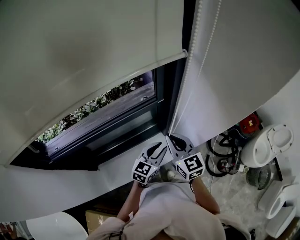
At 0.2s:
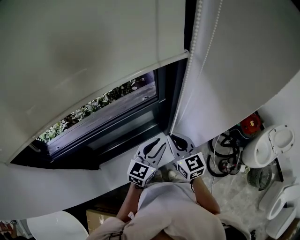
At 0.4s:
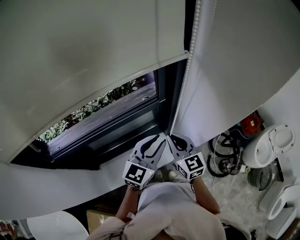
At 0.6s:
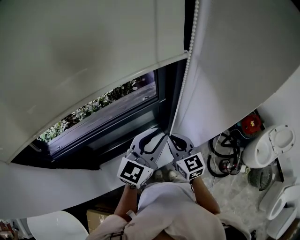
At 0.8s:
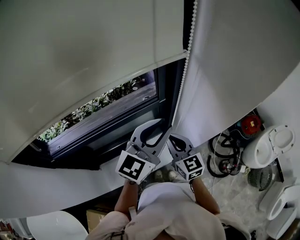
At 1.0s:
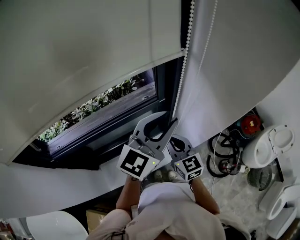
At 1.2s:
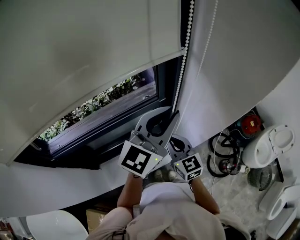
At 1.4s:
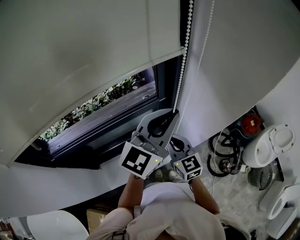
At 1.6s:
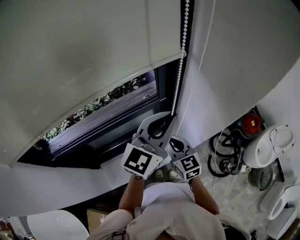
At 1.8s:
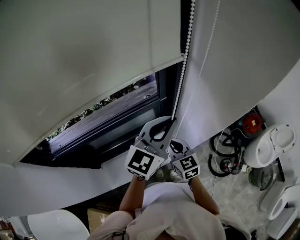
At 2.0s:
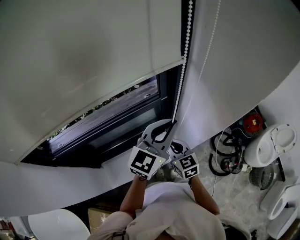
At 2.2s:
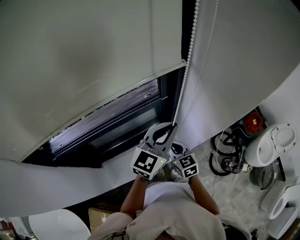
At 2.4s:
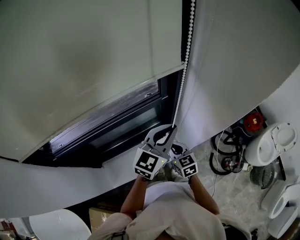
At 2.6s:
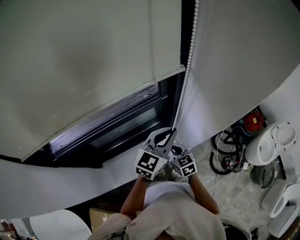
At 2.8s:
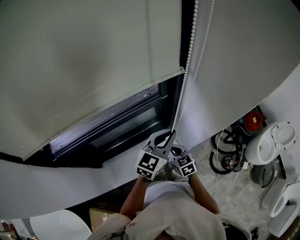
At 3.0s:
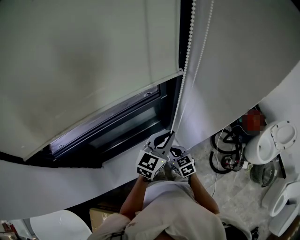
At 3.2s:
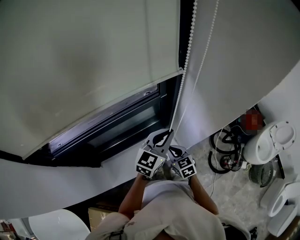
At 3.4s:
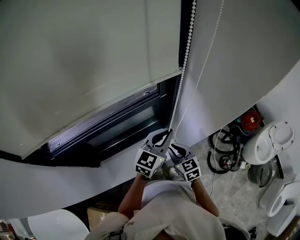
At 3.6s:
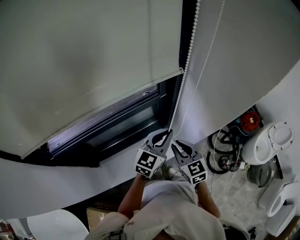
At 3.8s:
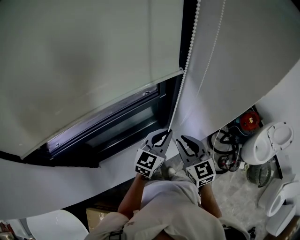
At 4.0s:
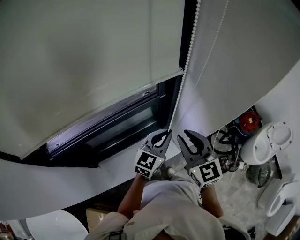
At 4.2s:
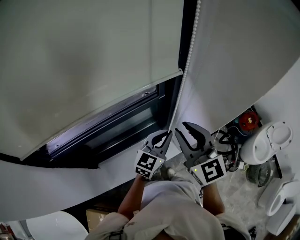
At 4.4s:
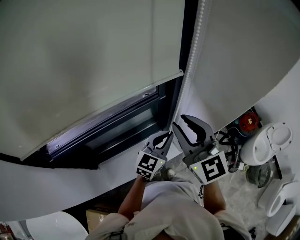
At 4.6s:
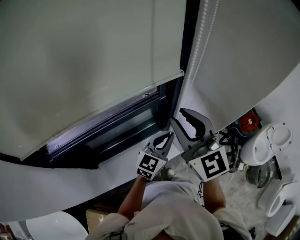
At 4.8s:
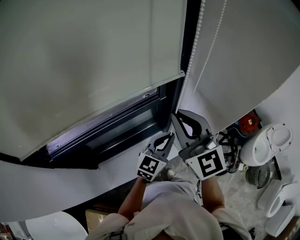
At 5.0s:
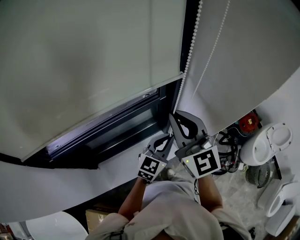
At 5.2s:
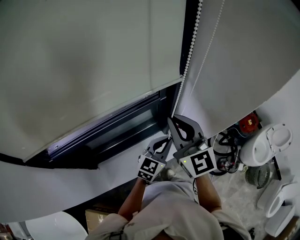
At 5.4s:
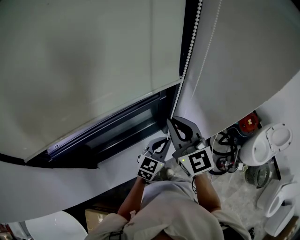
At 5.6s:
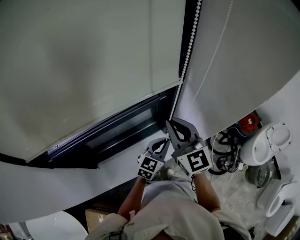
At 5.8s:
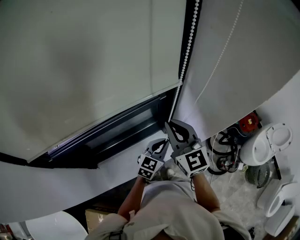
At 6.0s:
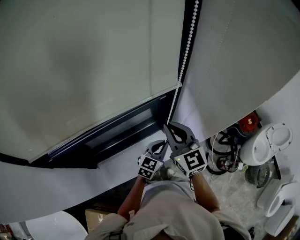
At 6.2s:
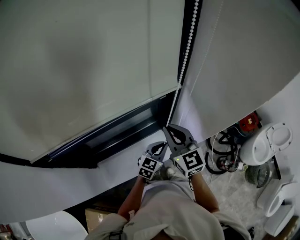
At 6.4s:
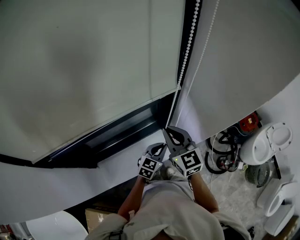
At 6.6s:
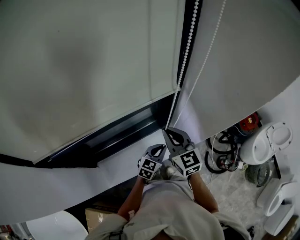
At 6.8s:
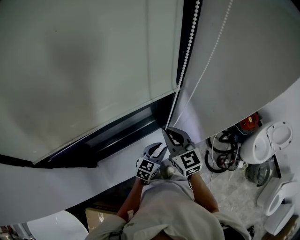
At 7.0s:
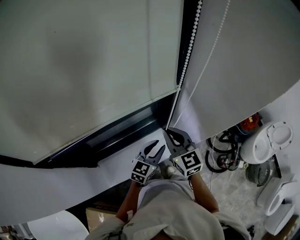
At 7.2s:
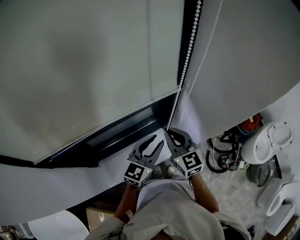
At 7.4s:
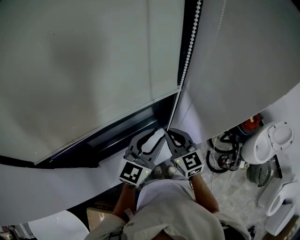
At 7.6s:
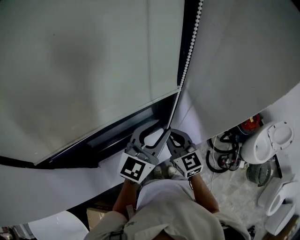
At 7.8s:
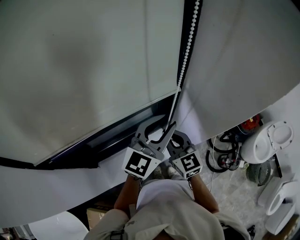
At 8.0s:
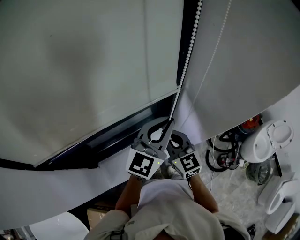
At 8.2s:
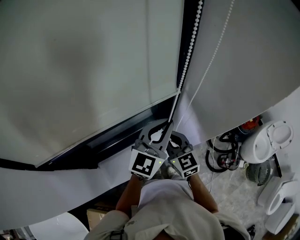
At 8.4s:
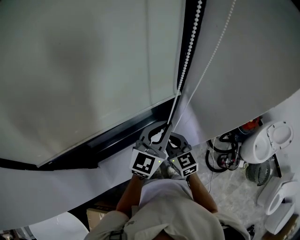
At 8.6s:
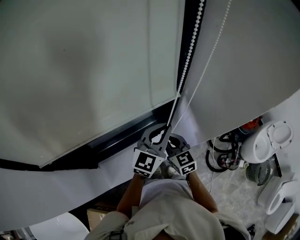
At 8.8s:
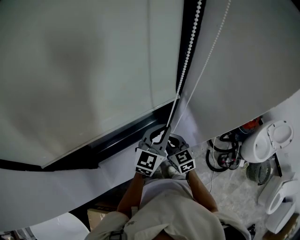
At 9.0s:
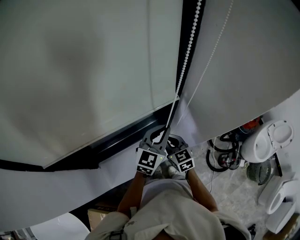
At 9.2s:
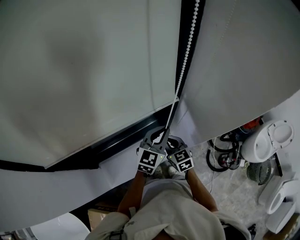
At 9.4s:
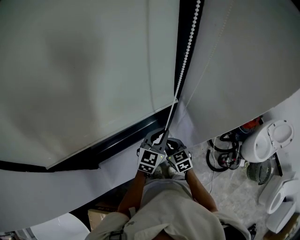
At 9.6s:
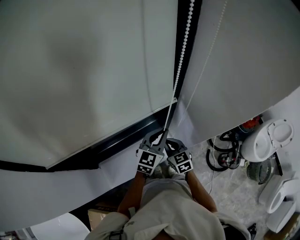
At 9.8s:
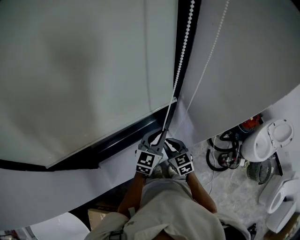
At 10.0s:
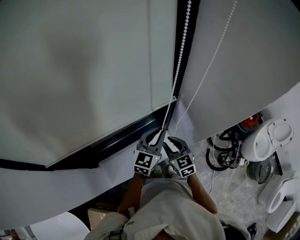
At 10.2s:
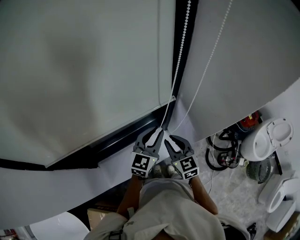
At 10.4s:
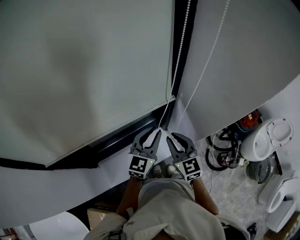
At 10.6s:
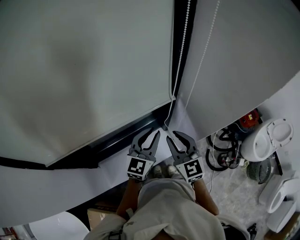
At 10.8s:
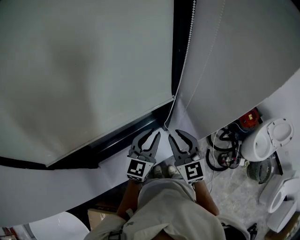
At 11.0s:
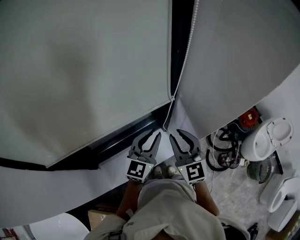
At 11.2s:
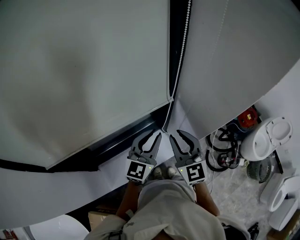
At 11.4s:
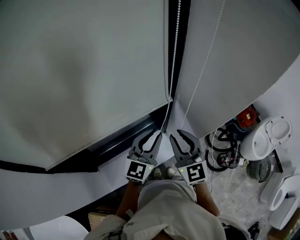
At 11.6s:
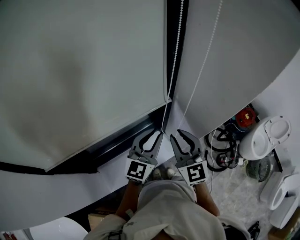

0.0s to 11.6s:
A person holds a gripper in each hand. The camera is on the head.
0.0s to 1.4s: The left gripper shifts roughly 30 cm upward, and changes its angle by approximately 30 degrees.
1.4s to 2.8s: The two grippers go about 20 cm downward. The right gripper turns by about 20 degrees.
2.8s to 4.4s: The right gripper moves upward, some 35 cm, angles its fingers upward, by approximately 30 degrees, and opens up.
4.4s to 5.8s: The two grippers go about 10 cm downward. The right gripper closes.
5.8s to 7.2s: The right gripper travels downward by roughly 10 cm. Meanwhile the left gripper is displaced upward by roughly 10 cm, and opens its fingers.
7.2s to 8.8s: The right gripper goes about 10 cm downward; the left gripper moves forward, approximately 5 cm, travels upward and back again, some 10 cm each way, and closes.
8.8s to 10.2s: The right gripper travels downward and back again, about 5 cm each way, and opens up.
10.2s to 11.6s: The left gripper goes approximately 5 cm upward. Meanwhile the right gripper is displaced upward by roughly 15 cm, and turns by some 20 degrees.

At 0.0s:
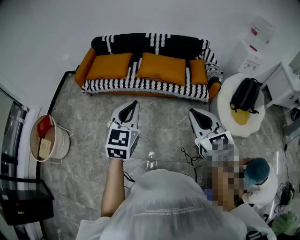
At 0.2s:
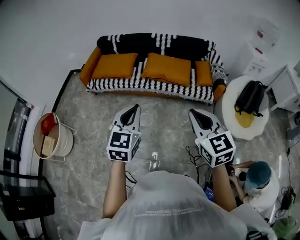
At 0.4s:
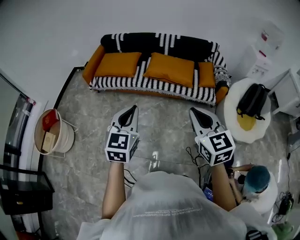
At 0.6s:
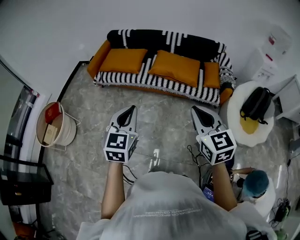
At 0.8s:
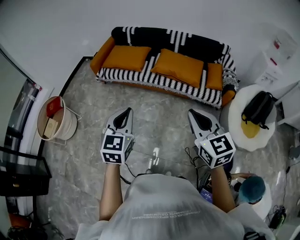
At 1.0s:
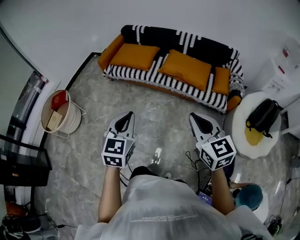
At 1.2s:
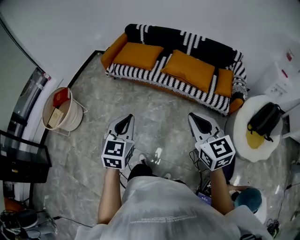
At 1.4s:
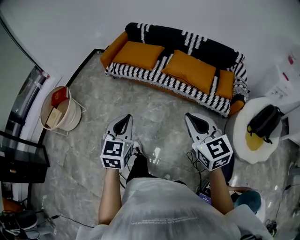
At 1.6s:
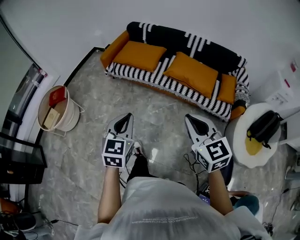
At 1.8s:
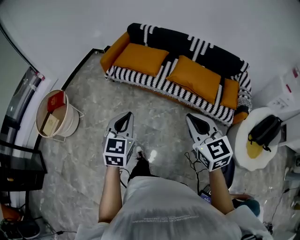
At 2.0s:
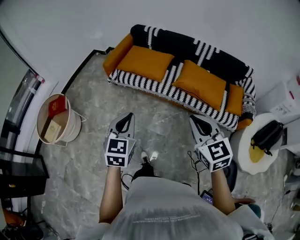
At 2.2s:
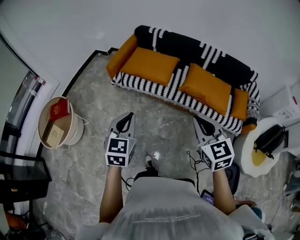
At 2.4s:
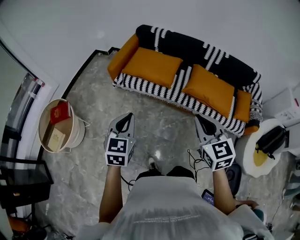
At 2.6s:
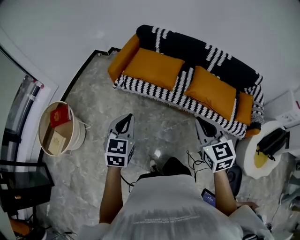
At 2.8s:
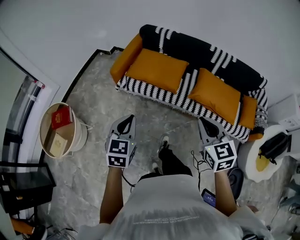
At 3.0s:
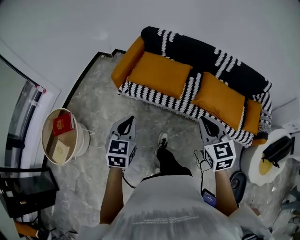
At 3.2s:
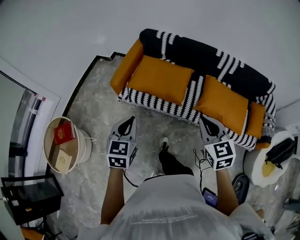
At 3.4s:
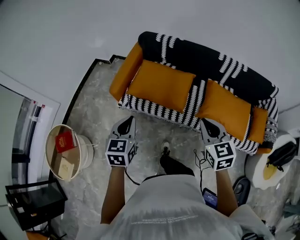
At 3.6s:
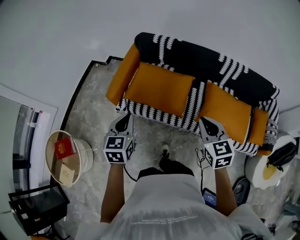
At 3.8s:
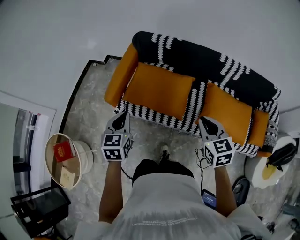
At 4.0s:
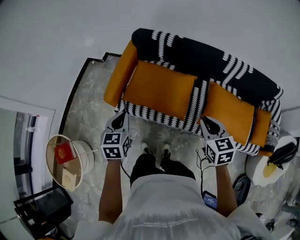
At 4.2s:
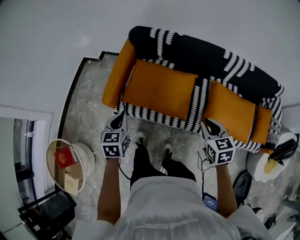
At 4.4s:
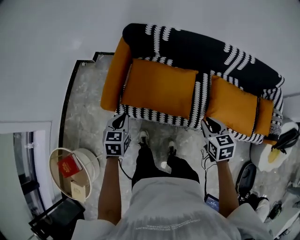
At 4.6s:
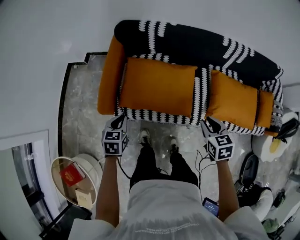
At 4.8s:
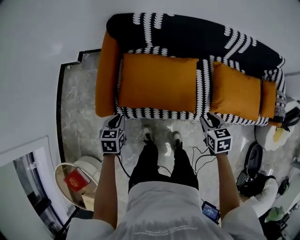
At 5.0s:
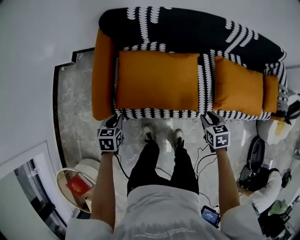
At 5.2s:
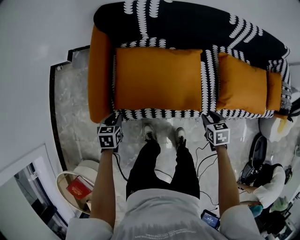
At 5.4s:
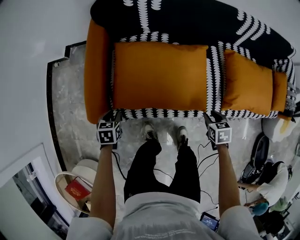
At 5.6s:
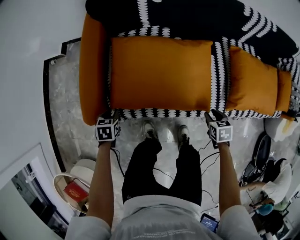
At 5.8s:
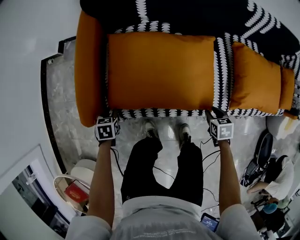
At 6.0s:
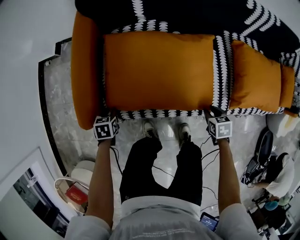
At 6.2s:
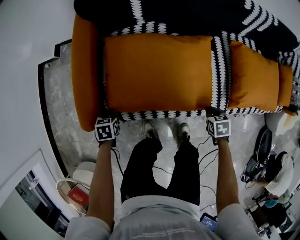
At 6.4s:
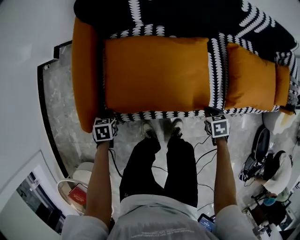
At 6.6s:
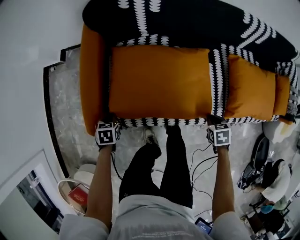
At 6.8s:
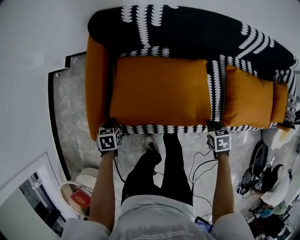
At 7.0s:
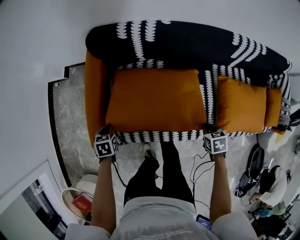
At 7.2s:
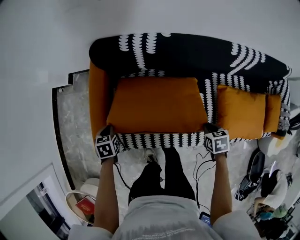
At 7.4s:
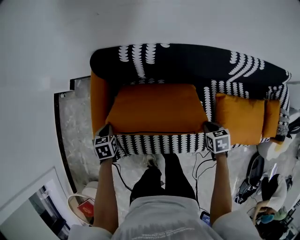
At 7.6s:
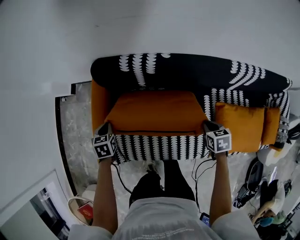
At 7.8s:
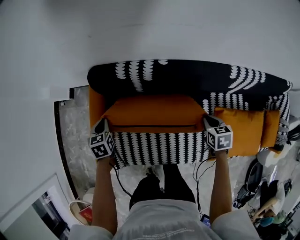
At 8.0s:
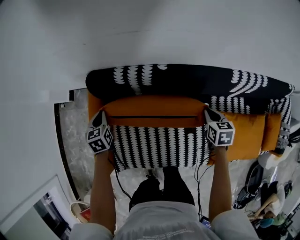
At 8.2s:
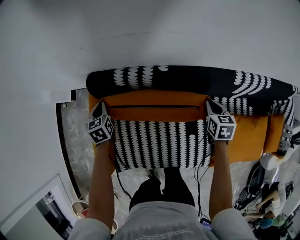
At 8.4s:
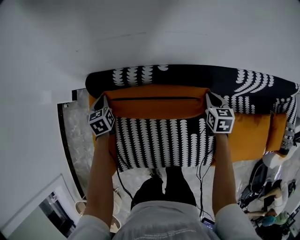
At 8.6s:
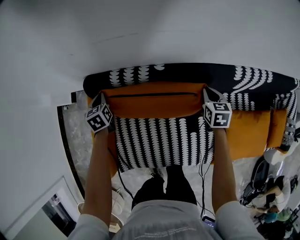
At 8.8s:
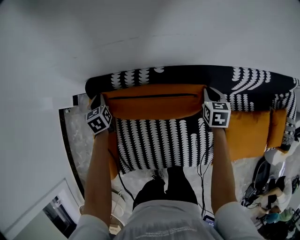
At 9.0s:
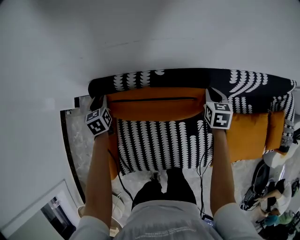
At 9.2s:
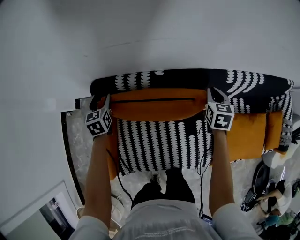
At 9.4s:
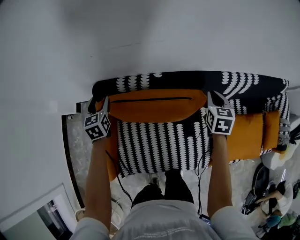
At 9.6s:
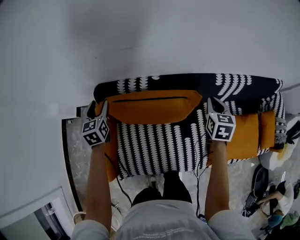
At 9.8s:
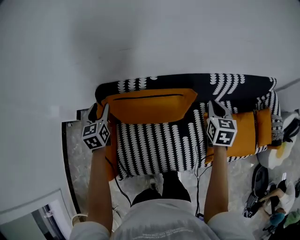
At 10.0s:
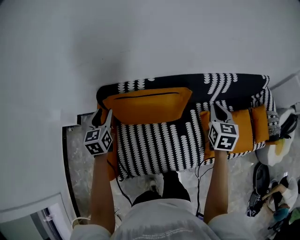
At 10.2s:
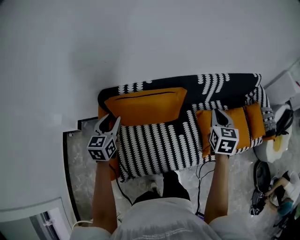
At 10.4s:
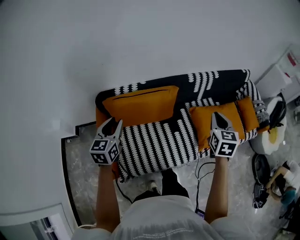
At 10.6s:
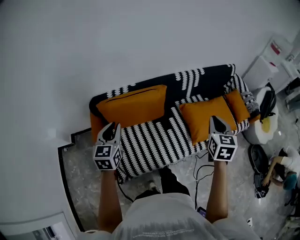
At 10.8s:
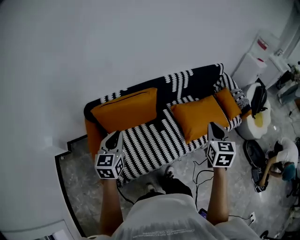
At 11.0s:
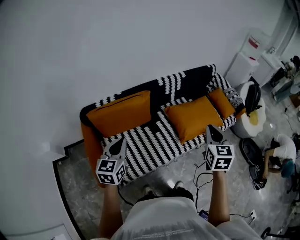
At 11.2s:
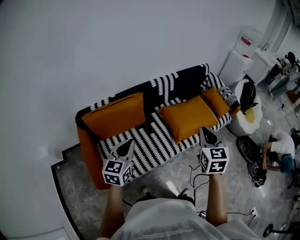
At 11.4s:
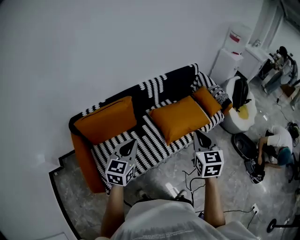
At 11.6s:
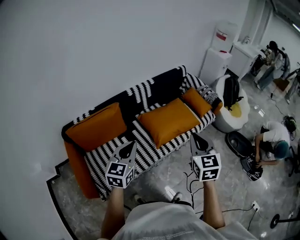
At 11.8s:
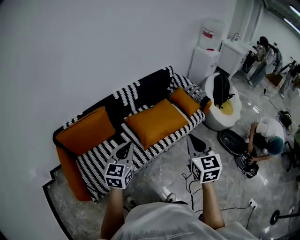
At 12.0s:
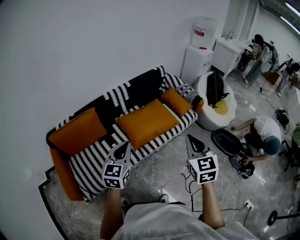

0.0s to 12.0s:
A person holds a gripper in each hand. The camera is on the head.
0.0s to 1.6s: The left gripper moves to the left and downward, about 15 cm, and rotates roughly 20 degrees, while the right gripper heads forward and to the left, covering roughly 15 cm.
1.6s to 3.0s: The pair of grippers is taken forward and to the left, roughly 40 cm.
3.0s to 4.4s: The grippers both shift forward and downward by approximately 40 cm. The right gripper turns by approximately 30 degrees.
4.4s to 6.0s: The two grippers go roughly 40 cm downward. The left gripper turns by approximately 30 degrees, and opens its fingers. The right gripper swivels about 30 degrees.
6.0s to 7.6s: The right gripper changes place by roughly 35 cm, and closes its fingers, while the left gripper shifts by some 35 cm, and closes up.
7.6s to 9.0s: The grippers both shift forward by some 20 cm. The right gripper rotates about 20 degrees. The left gripper opens up.
9.0s to 10.4s: The right gripper moves approximately 50 cm, and turns by some 30 degrees. The left gripper moves approximately 40 cm, swivels about 40 degrees, and opens, then closes once more.
10.4s to 12.0s: The two grippers travel together, to the right, some 50 cm. The left gripper swivels some 30 degrees, and closes its fingers.
